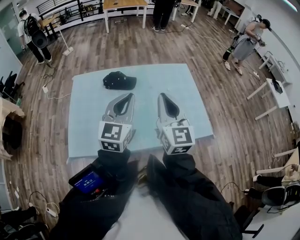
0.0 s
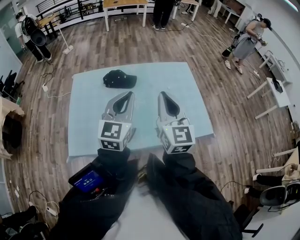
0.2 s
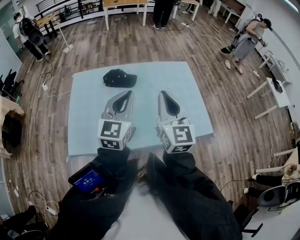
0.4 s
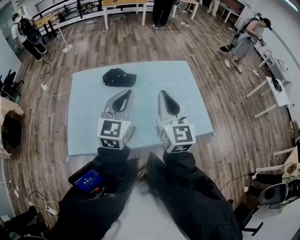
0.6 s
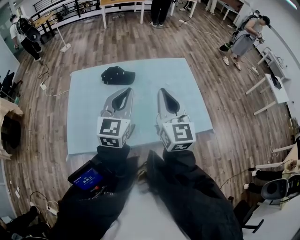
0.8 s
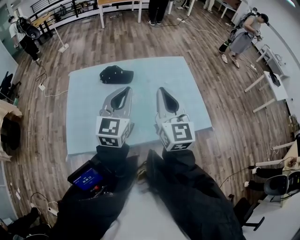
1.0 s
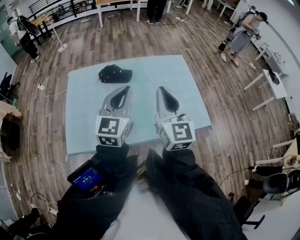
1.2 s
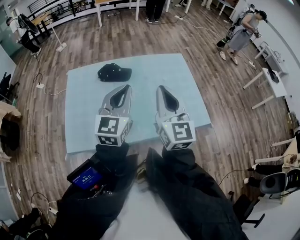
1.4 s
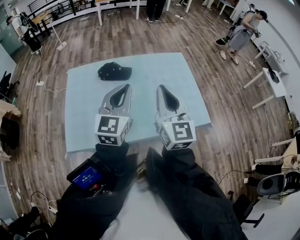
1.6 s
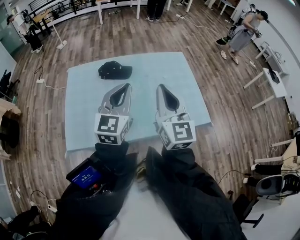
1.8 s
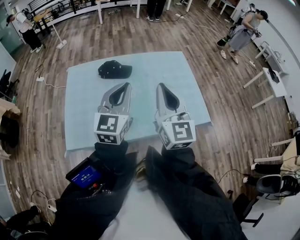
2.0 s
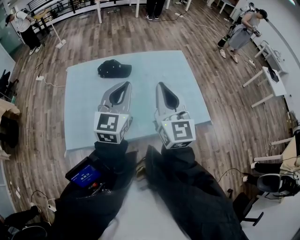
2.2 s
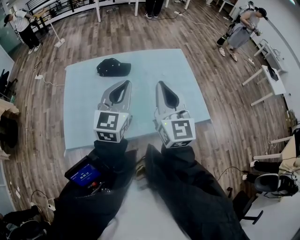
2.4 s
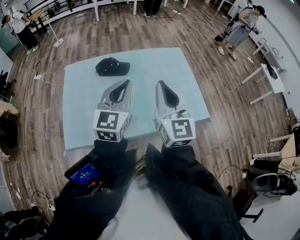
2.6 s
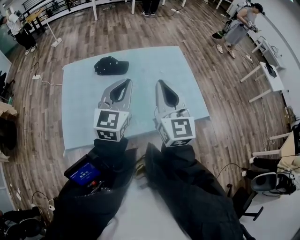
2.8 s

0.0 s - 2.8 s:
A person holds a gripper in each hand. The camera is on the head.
0.0 s - 2.8 s: There are only small adjustments of the grippers.

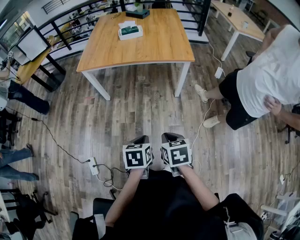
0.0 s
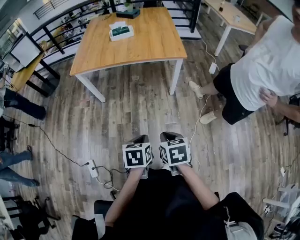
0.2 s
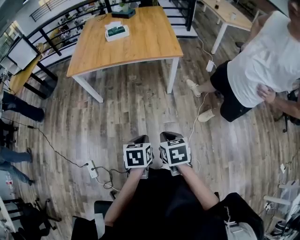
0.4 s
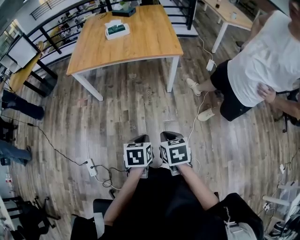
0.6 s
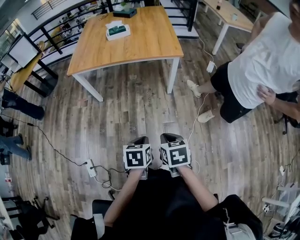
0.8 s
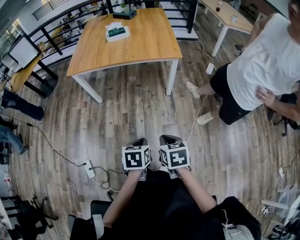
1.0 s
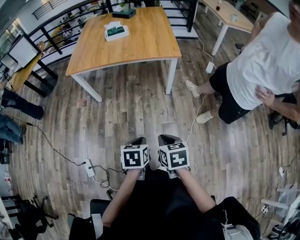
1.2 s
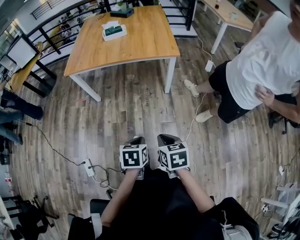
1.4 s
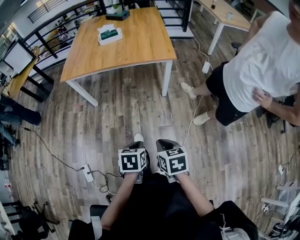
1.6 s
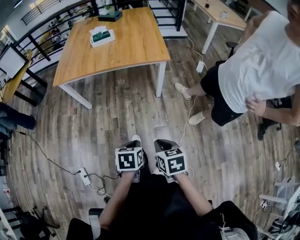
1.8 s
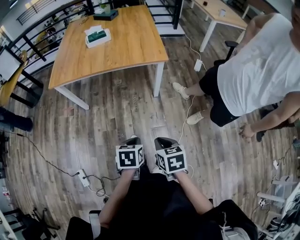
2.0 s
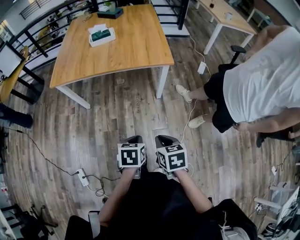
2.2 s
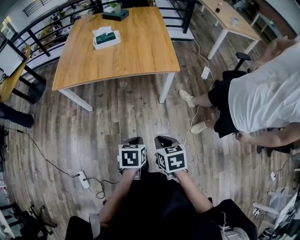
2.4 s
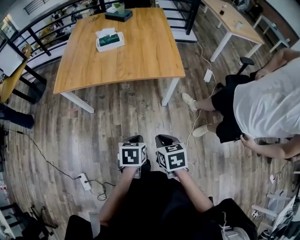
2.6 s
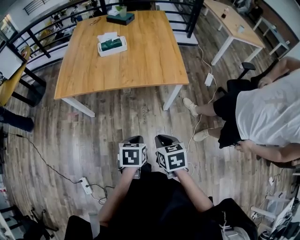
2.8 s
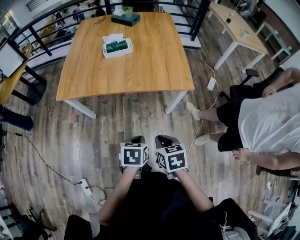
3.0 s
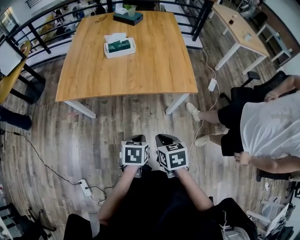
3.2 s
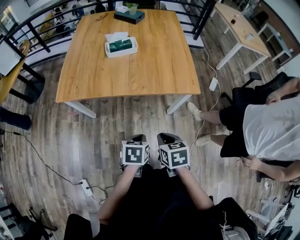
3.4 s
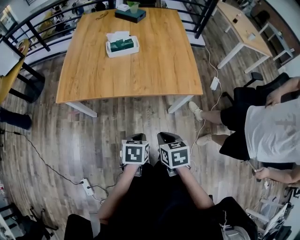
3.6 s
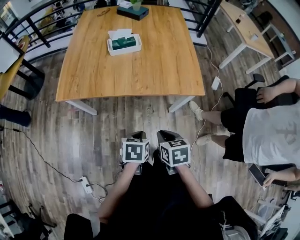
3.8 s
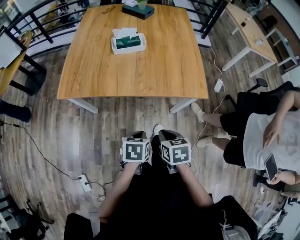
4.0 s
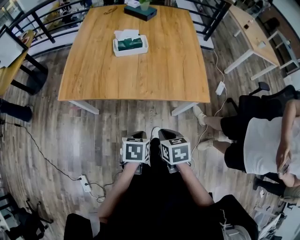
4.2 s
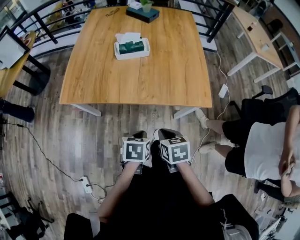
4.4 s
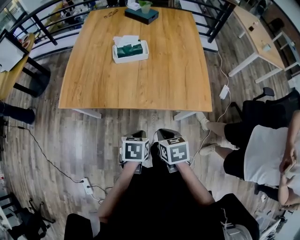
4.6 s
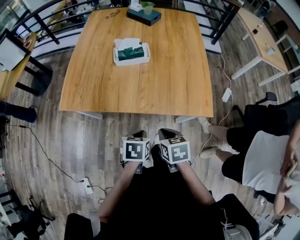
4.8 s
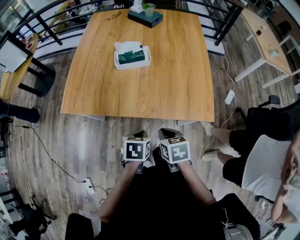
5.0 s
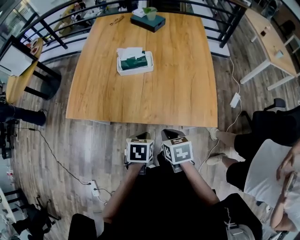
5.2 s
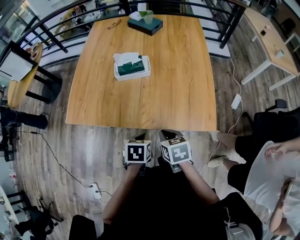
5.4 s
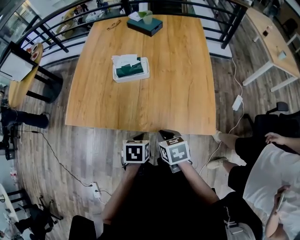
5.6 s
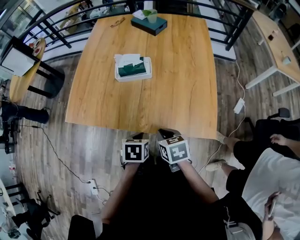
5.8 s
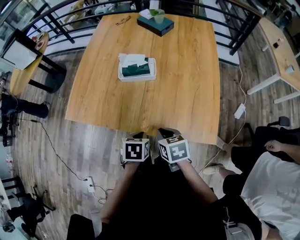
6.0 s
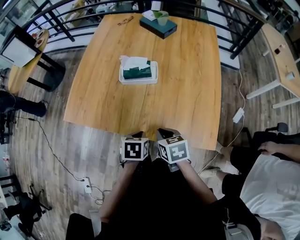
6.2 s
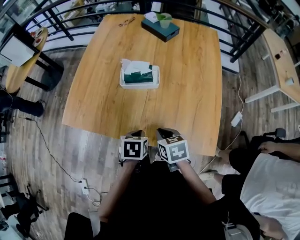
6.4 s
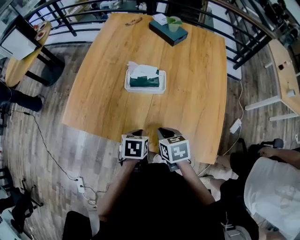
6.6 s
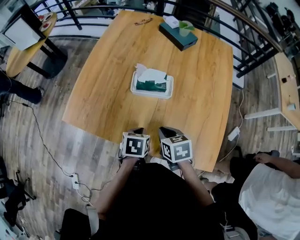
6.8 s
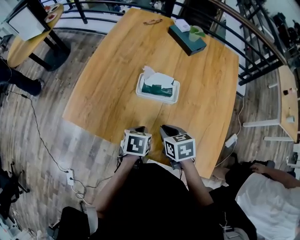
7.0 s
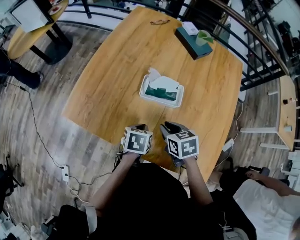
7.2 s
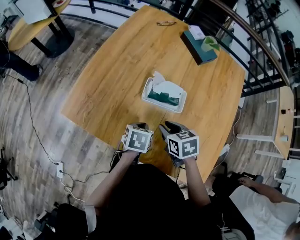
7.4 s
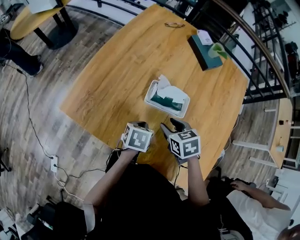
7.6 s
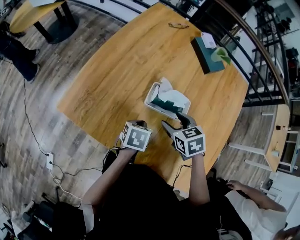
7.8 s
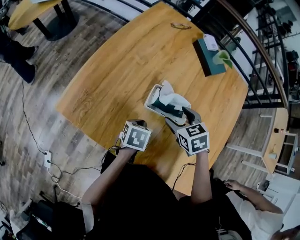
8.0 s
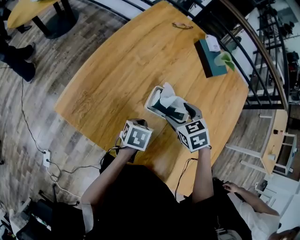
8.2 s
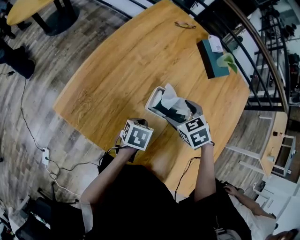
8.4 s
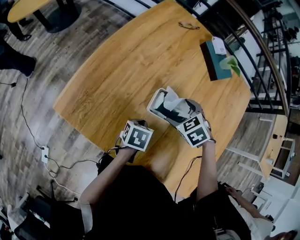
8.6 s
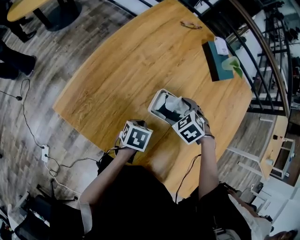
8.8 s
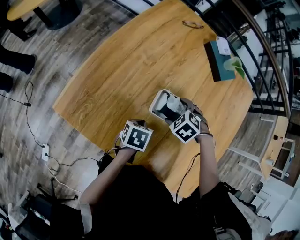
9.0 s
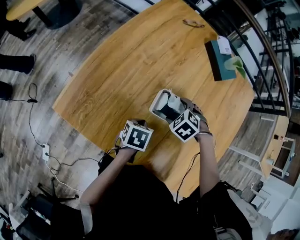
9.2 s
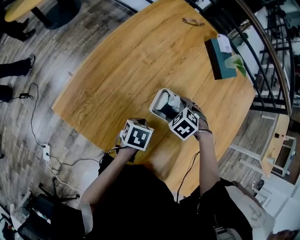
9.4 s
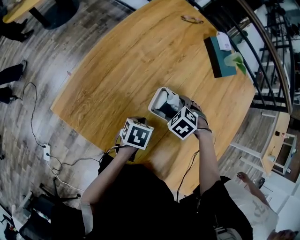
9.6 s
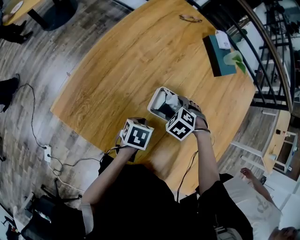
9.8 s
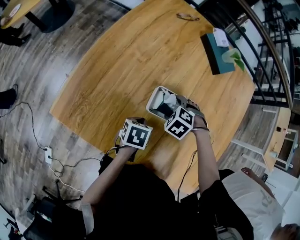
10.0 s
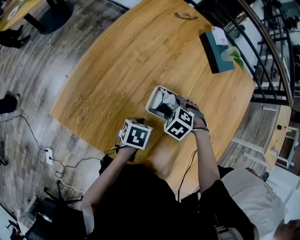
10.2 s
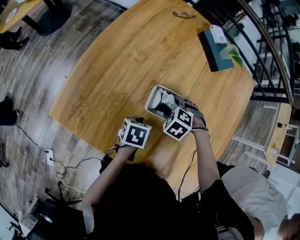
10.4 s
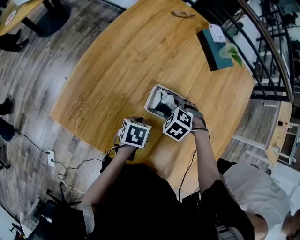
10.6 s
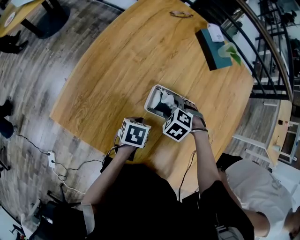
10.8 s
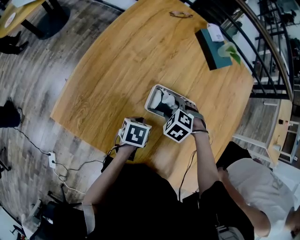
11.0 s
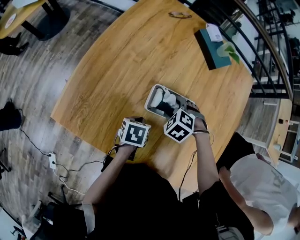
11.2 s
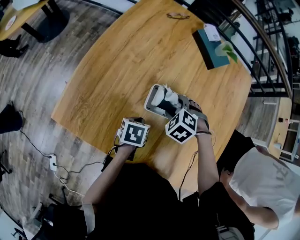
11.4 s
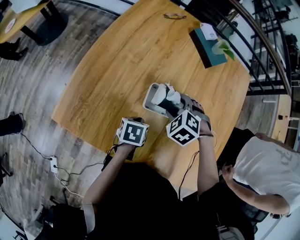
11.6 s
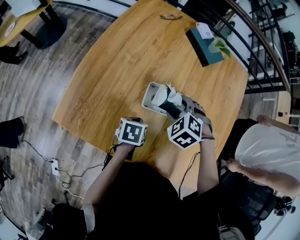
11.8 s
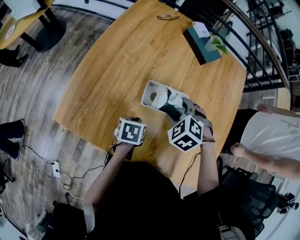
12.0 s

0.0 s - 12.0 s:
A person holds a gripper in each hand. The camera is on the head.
0.0 s - 1.6 s: The grippers both shift to the right by approximately 5 cm.
1.6 s - 3.0 s: Both grippers move forward, approximately 30 cm.
3.0 s - 4.4 s: The left gripper heads forward and to the left, covering roughly 15 cm, while the right gripper heads forward, covering about 15 cm.
4.4 s - 6.0 s: The grippers both shift forward by some 20 cm.
6.0 s - 7.6 s: The two grippers go approximately 25 cm forward. The right gripper rotates about 30 degrees, and opens its fingers.
7.6 s - 9.0 s: The right gripper changes place by approximately 15 cm, rotates around the line of its fingers by roughly 40 degrees, counterclockwise from behind, and opens up, while the left gripper moves some 5 cm.
9.0 s - 10.4 s: The grippers make only small movements.
10.4 s - 12.0 s: The right gripper travels upward by about 10 cm.

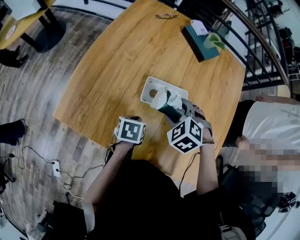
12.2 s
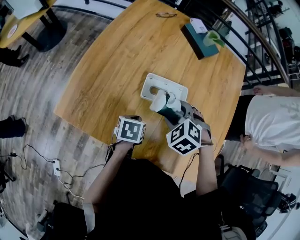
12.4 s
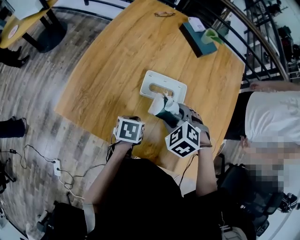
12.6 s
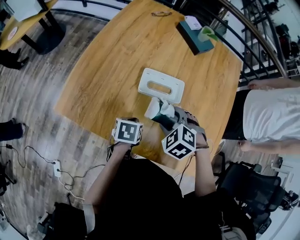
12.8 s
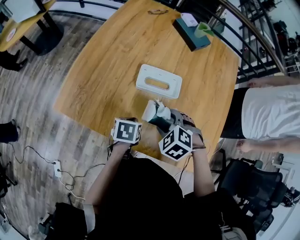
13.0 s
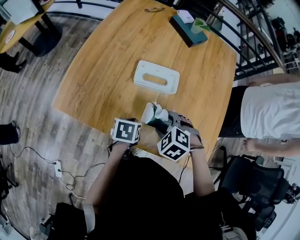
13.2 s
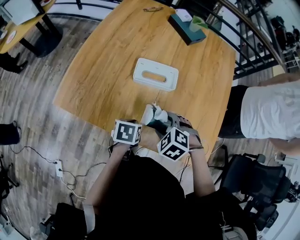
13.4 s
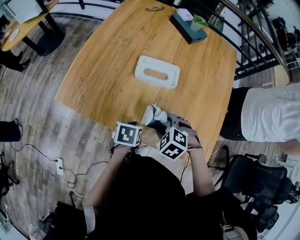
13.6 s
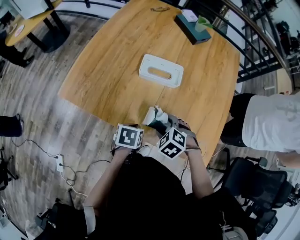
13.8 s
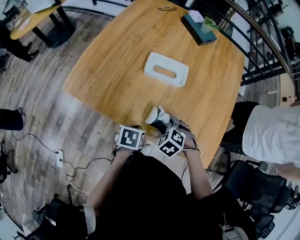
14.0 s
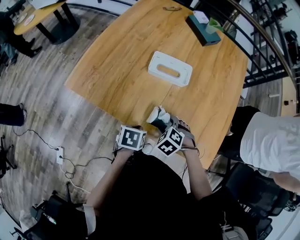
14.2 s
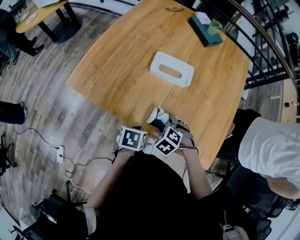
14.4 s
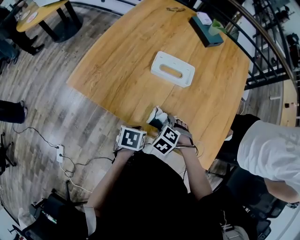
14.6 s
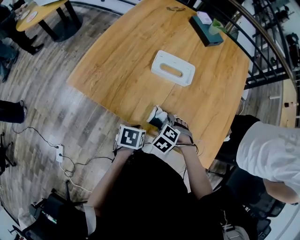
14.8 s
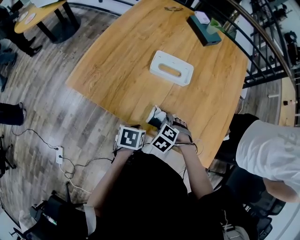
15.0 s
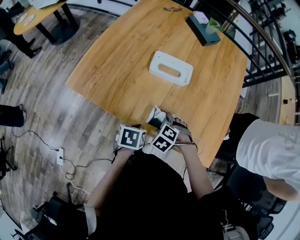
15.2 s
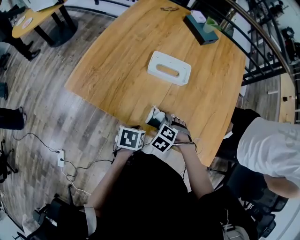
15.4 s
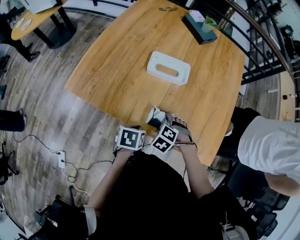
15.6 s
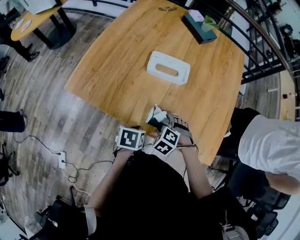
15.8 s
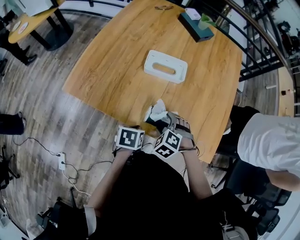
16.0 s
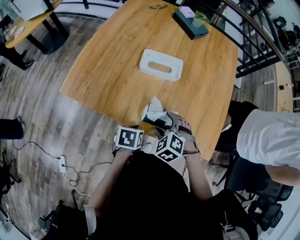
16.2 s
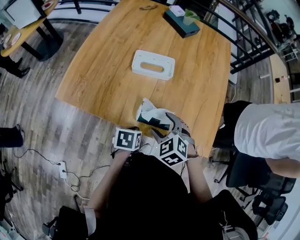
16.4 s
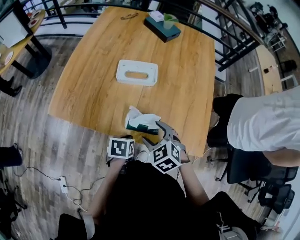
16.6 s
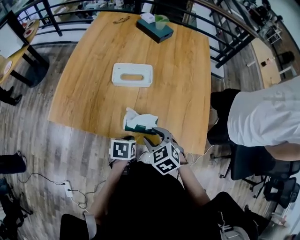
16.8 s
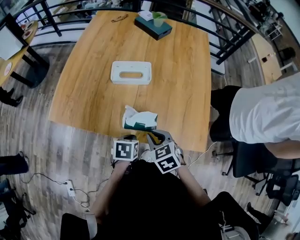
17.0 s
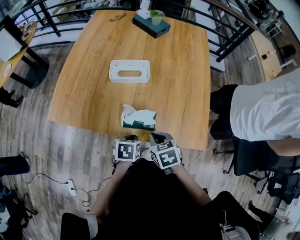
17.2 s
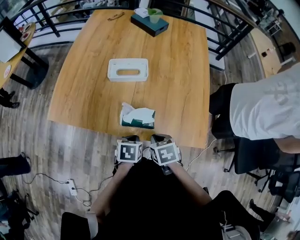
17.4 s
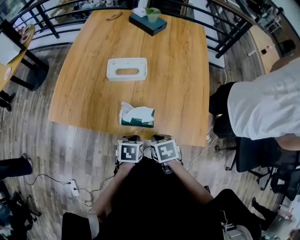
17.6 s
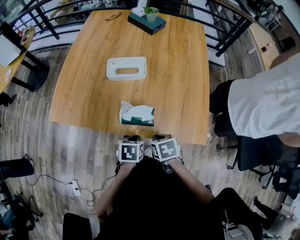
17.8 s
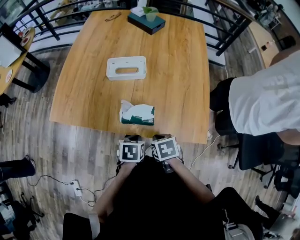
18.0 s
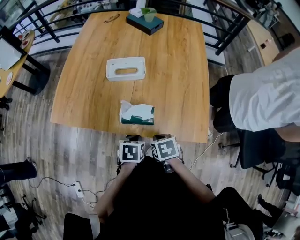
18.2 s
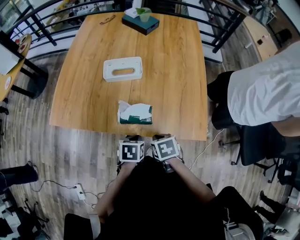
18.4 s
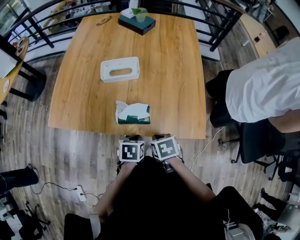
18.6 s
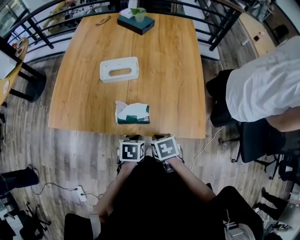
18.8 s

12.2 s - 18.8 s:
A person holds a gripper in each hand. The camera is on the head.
12.2 s - 13.8 s: The two grippers go about 20 cm backward.
13.8 s - 15.4 s: The right gripper shifts some 5 cm downward.
15.4 s - 17.2 s: The left gripper moves roughly 10 cm. The right gripper goes some 10 cm upward, twists approximately 60 degrees clockwise, seen from behind, and closes.
17.2 s - 18.8 s: The right gripper changes place by about 5 cm.

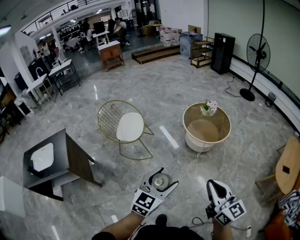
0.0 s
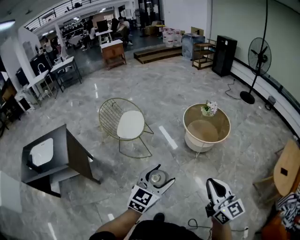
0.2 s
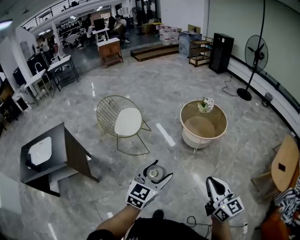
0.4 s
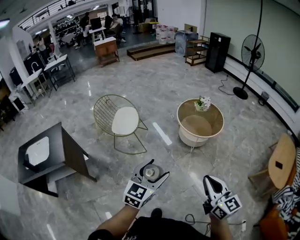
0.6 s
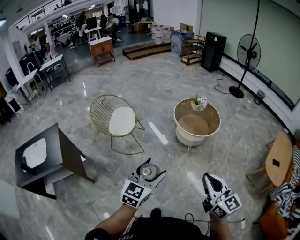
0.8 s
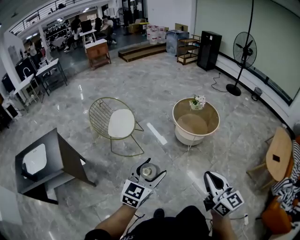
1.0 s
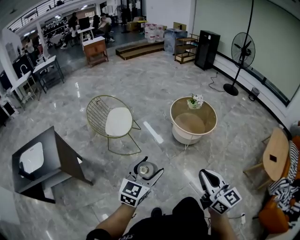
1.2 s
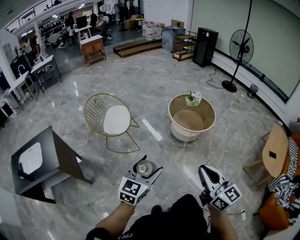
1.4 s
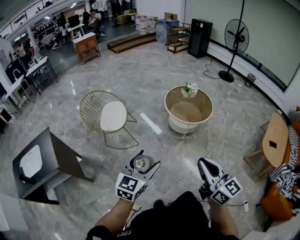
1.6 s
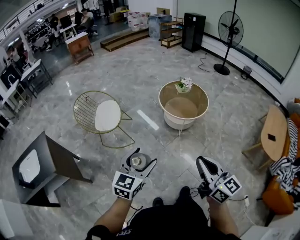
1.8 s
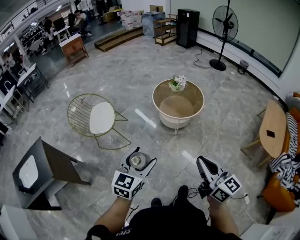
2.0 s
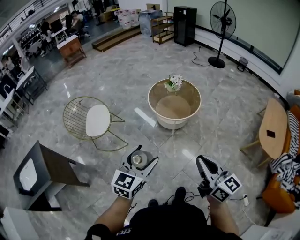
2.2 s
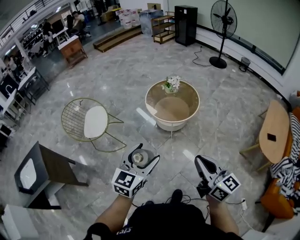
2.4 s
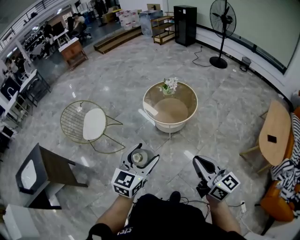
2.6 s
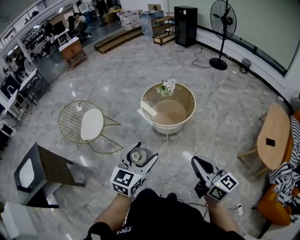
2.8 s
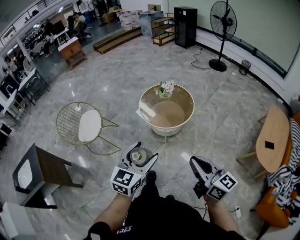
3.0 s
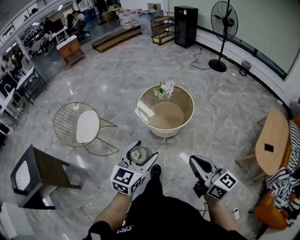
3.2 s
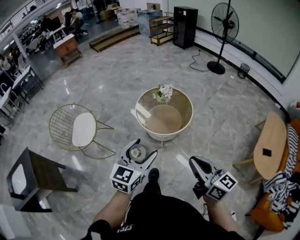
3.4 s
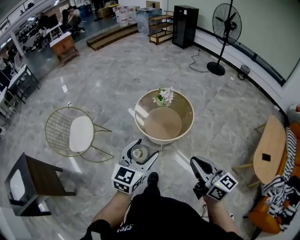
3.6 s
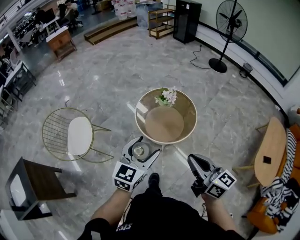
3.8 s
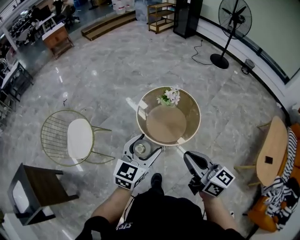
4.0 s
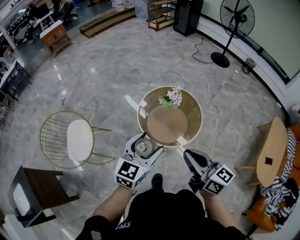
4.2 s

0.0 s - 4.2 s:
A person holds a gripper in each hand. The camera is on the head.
0.0 s - 1.4 s: The left gripper is displaced to the left by roughly 10 cm. The right gripper heads to the left, covering some 5 cm.
1.4 s - 2.8 s: Both grippers travel together to the right and forward, approximately 35 cm.
2.8 s - 4.2 s: The pair of grippers is taken forward, about 40 cm.
